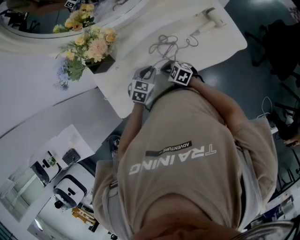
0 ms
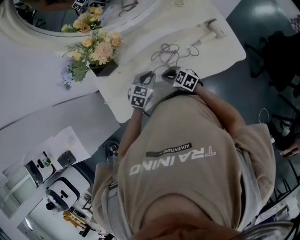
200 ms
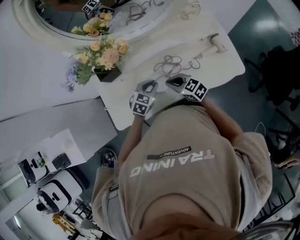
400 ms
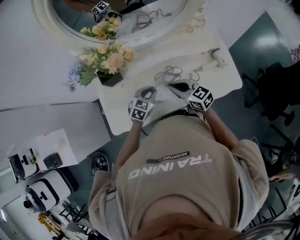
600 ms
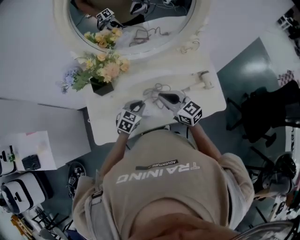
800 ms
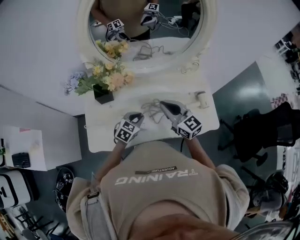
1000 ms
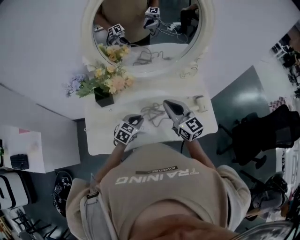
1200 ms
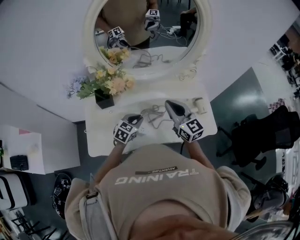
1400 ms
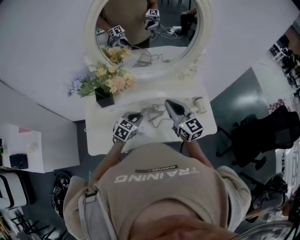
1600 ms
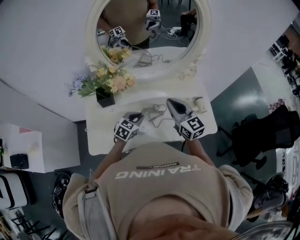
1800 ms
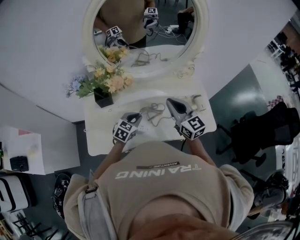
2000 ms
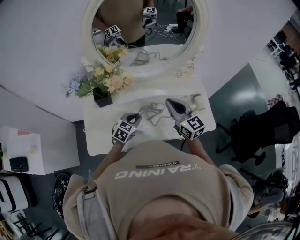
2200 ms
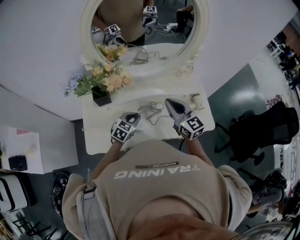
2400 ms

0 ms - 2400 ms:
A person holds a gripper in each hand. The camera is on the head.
0 ms - 1200 ms: The right gripper goes about 30 cm upward, and angles its fingers upward, by approximately 40 degrees; the left gripper heads upward, covering some 10 cm.
1200 ms - 2400 ms: The grippers make only small movements.

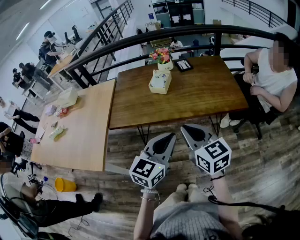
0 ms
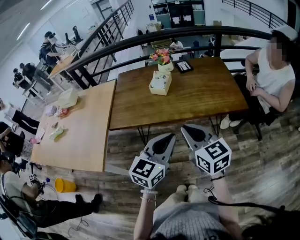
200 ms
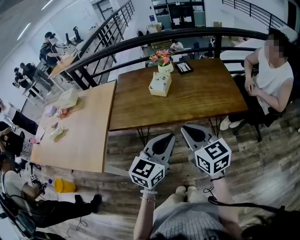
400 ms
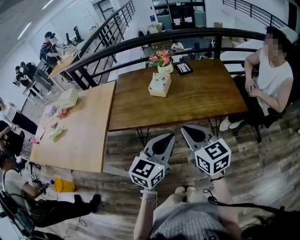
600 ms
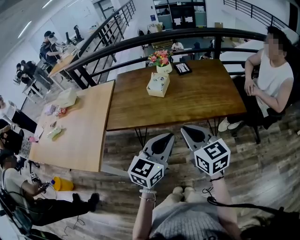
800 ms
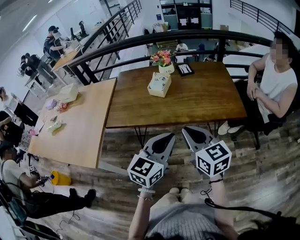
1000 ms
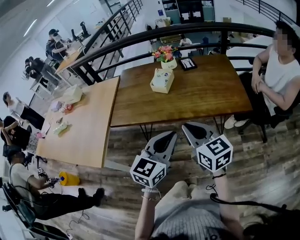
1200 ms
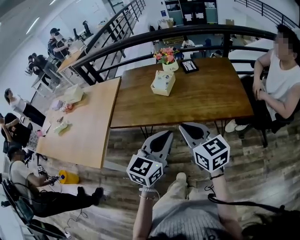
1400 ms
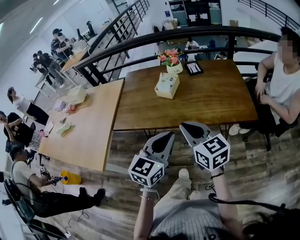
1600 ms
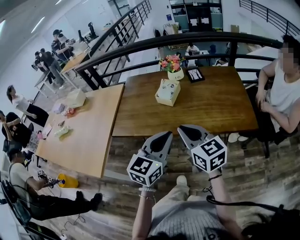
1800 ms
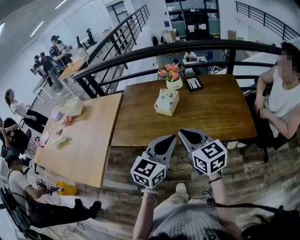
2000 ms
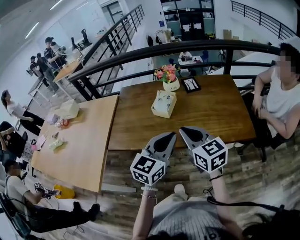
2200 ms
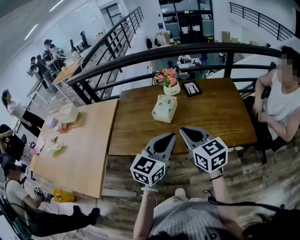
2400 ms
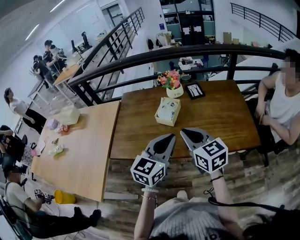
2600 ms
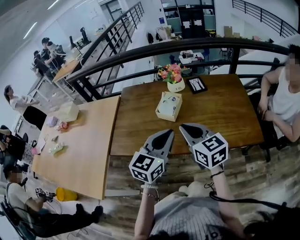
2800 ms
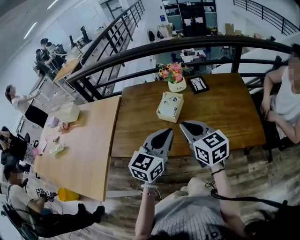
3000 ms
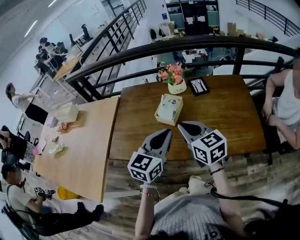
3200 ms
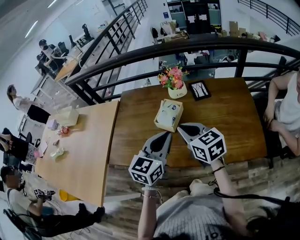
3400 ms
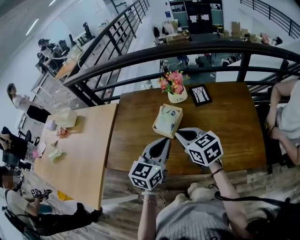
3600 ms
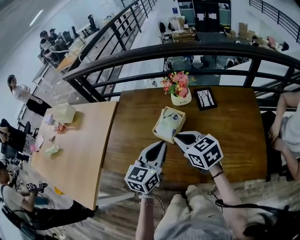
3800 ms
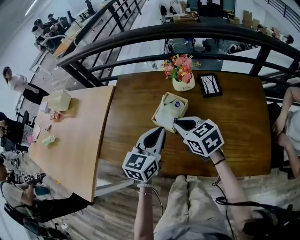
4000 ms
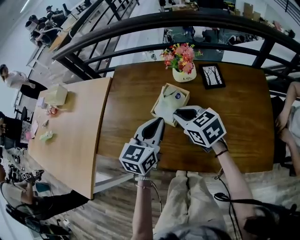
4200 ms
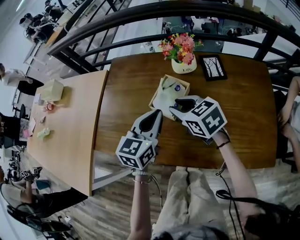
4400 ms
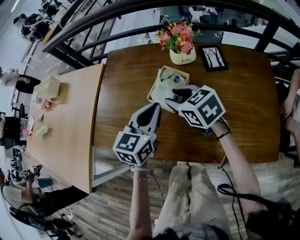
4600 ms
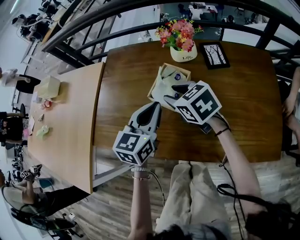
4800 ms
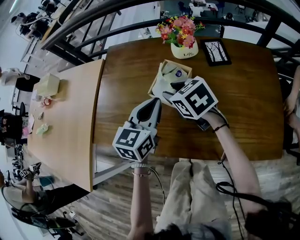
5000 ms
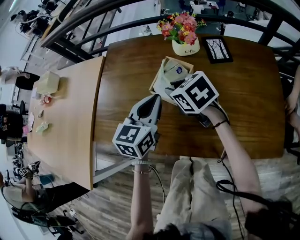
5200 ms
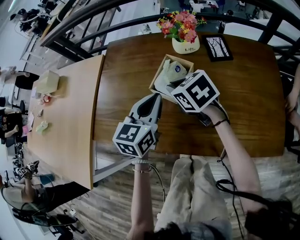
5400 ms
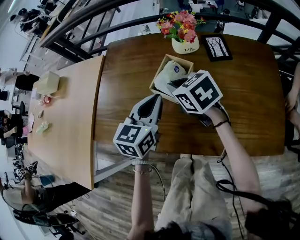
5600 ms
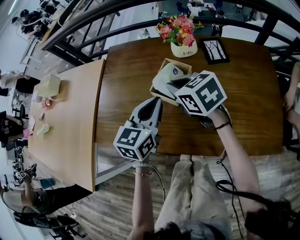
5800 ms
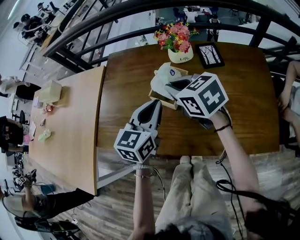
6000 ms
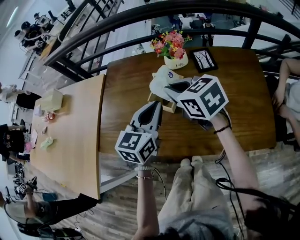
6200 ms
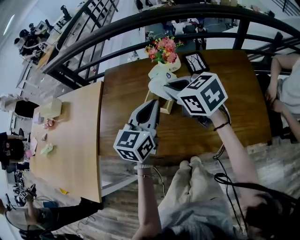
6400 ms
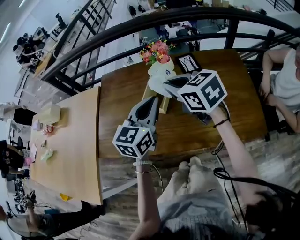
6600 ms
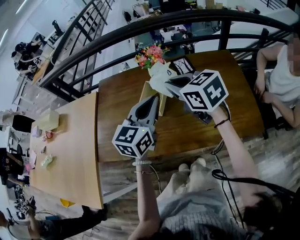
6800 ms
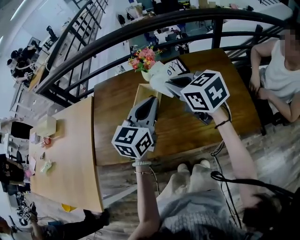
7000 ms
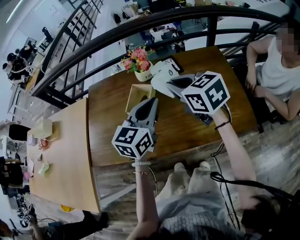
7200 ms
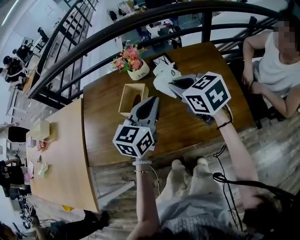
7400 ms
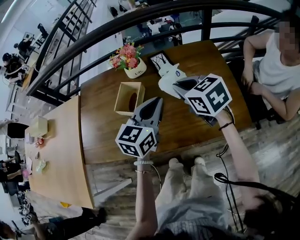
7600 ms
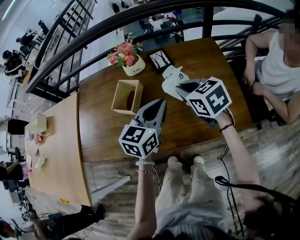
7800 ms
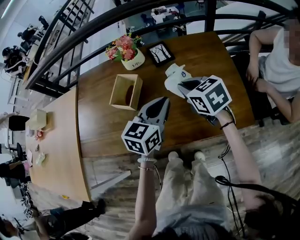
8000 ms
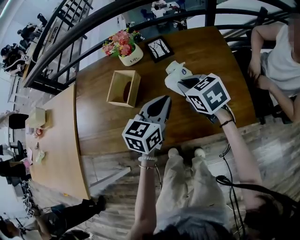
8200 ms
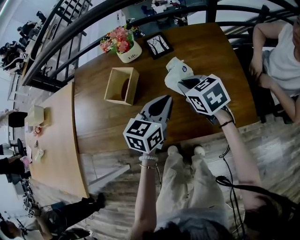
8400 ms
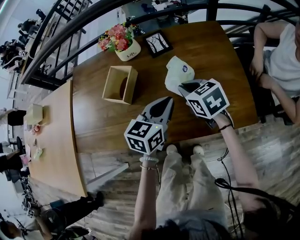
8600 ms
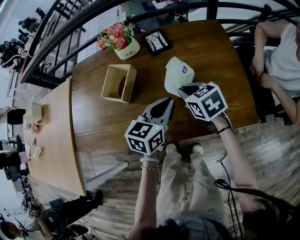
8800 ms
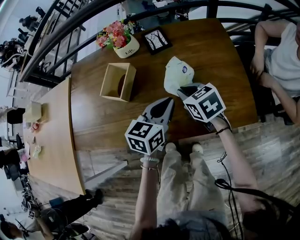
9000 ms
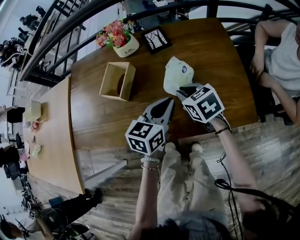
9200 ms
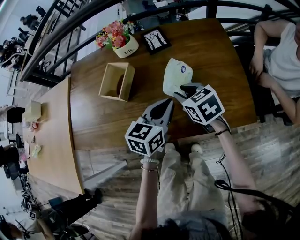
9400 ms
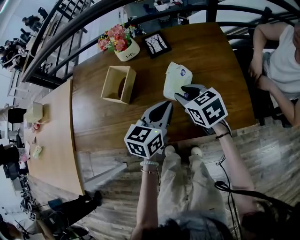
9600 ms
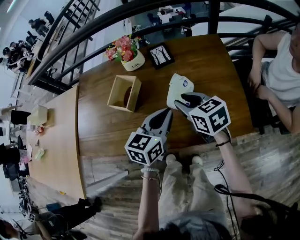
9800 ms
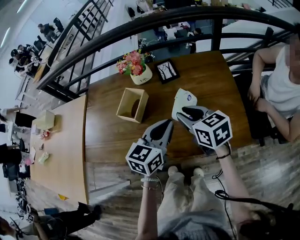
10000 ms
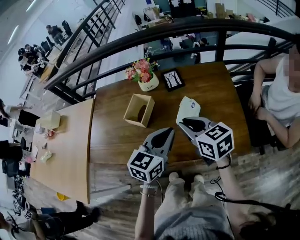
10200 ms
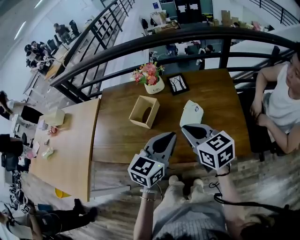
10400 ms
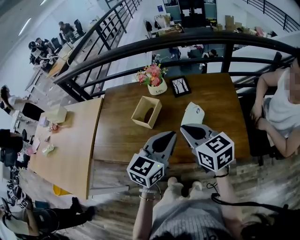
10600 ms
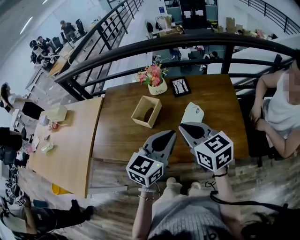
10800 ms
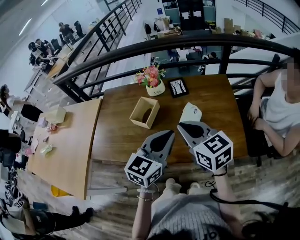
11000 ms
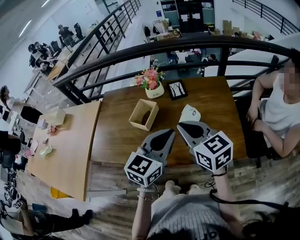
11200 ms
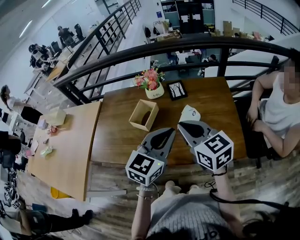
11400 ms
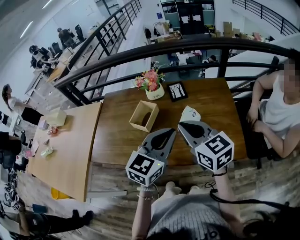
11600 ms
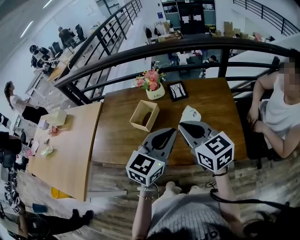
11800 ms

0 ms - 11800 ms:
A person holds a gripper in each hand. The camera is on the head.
0 ms - 1400 ms: The grippers make only small movements.
1400 ms - 3000 ms: The grippers both shift forward by some 20 cm.
3000 ms - 4400 ms: The grippers both shift forward and downward by roughly 20 cm. The right gripper swivels about 30 degrees, and opens up.
4400 ms - 6000 ms: The right gripper moves some 5 cm, and closes up.
6000 ms - 7400 ms: The left gripper moves to the right and upward, some 15 cm. Meanwhile the right gripper goes about 15 cm to the right.
7400 ms - 8800 ms: The left gripper is displaced downward and to the right by approximately 15 cm. Meanwhile the right gripper moves downward, roughly 15 cm.
8800 ms - 10400 ms: The two grippers go roughly 15 cm upward and backward. The right gripper rotates roughly 20 degrees, and opens, then closes once more.
10400 ms - 11800 ms: The left gripper ends up roughly 5 cm from where it was. The right gripper heads upward, covering about 5 cm.

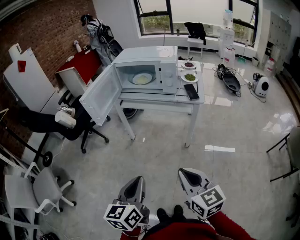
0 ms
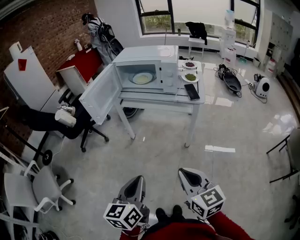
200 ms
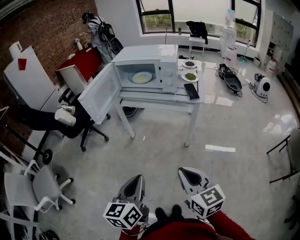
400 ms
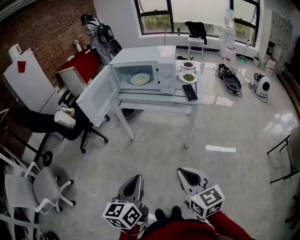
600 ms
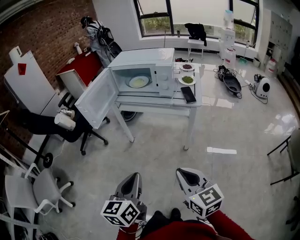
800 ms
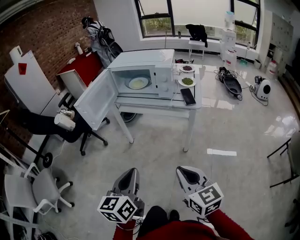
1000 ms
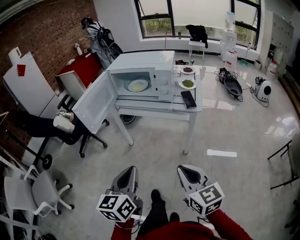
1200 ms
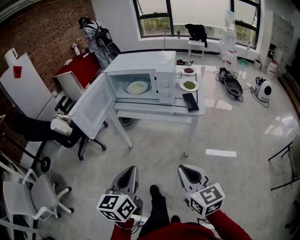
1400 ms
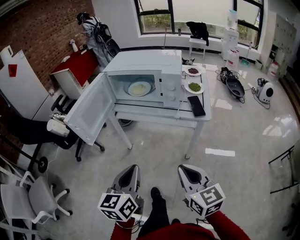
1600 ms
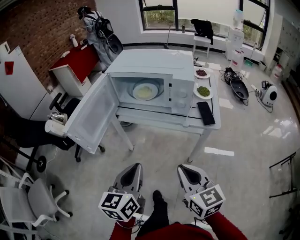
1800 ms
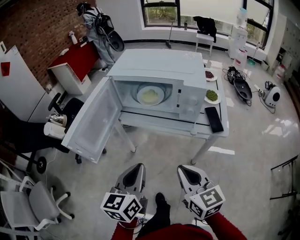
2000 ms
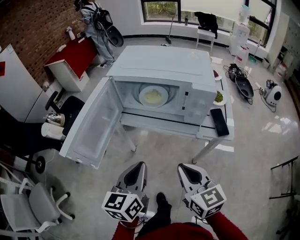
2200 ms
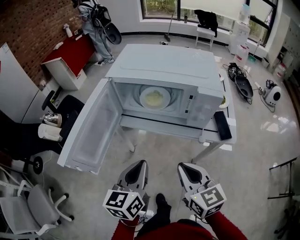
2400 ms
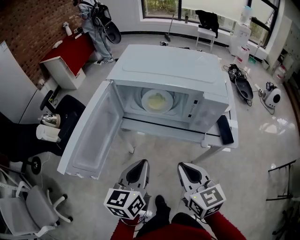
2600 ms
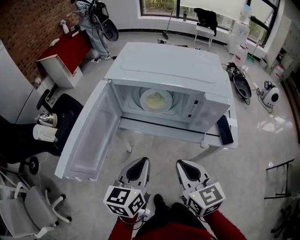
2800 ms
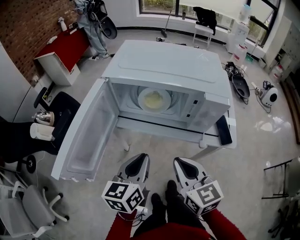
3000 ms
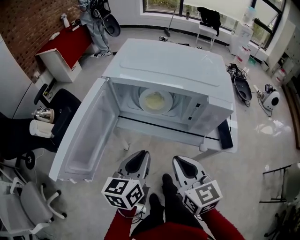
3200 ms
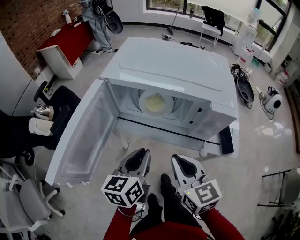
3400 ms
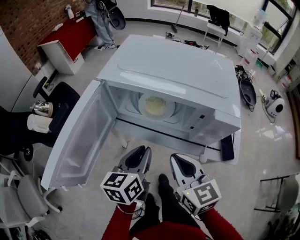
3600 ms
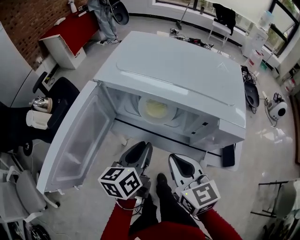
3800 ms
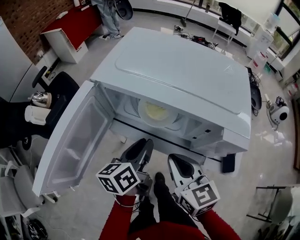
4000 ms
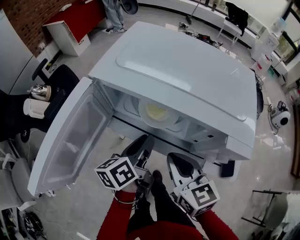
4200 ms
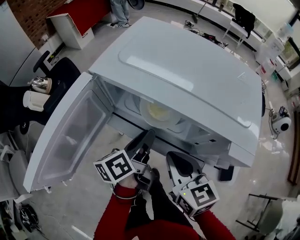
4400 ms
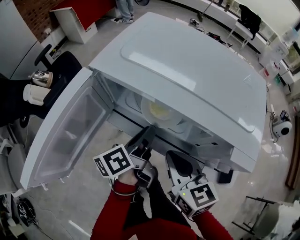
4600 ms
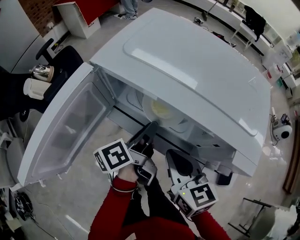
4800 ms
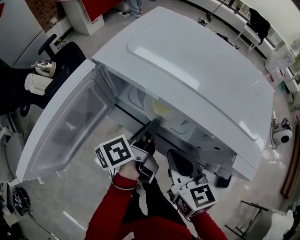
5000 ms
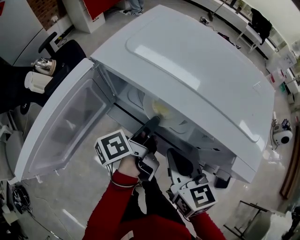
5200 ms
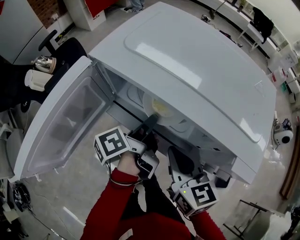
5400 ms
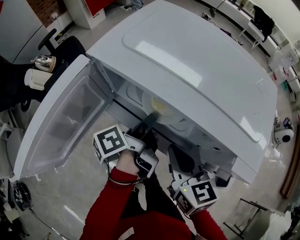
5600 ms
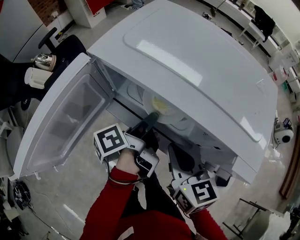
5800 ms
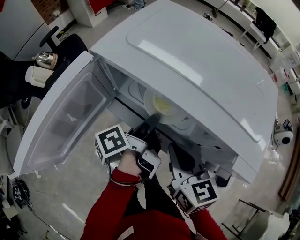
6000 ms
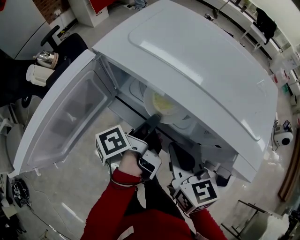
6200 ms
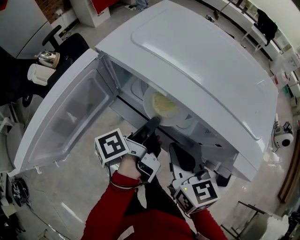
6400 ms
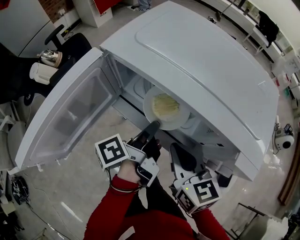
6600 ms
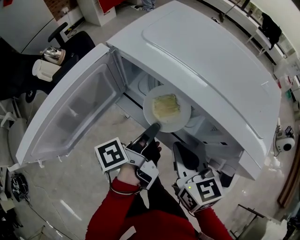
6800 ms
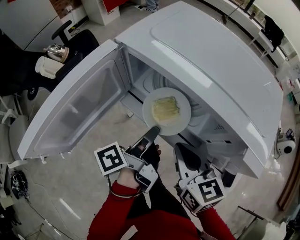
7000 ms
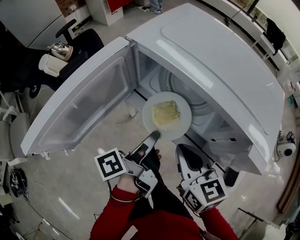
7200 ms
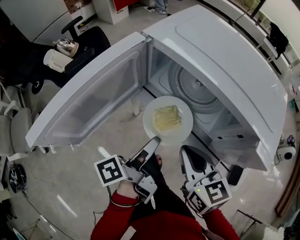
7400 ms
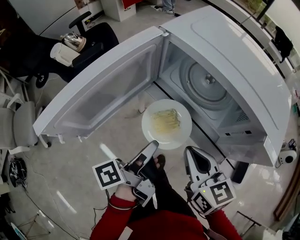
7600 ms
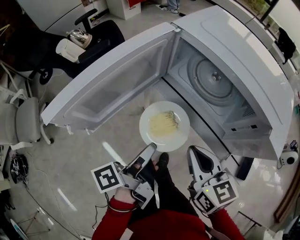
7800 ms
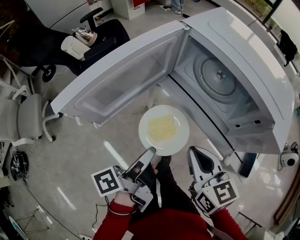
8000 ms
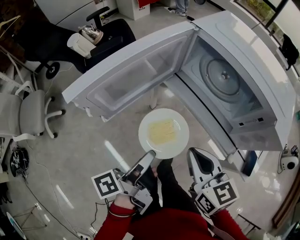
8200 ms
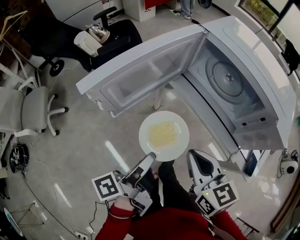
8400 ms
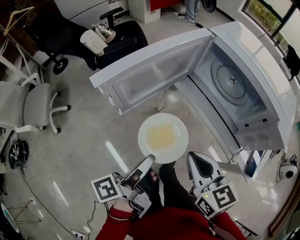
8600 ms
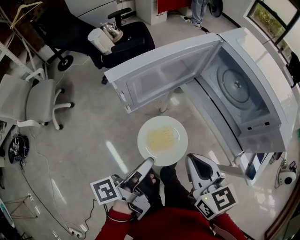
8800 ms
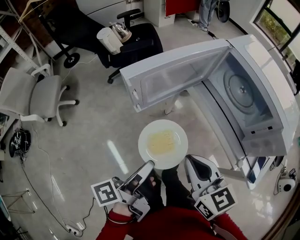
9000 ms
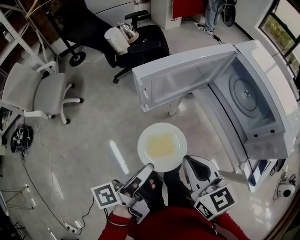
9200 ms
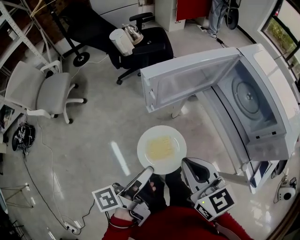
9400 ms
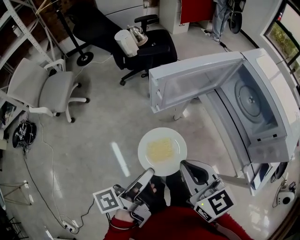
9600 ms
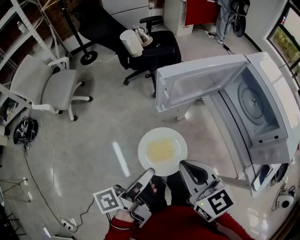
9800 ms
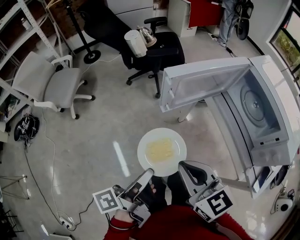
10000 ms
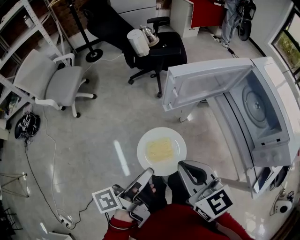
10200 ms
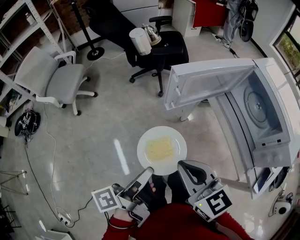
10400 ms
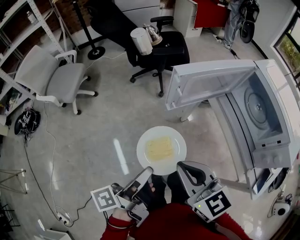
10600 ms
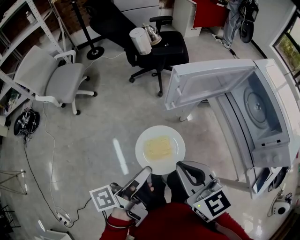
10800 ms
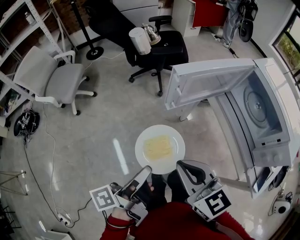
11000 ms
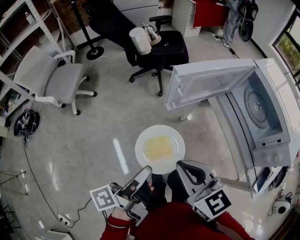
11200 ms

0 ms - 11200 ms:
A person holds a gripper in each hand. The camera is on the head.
0 ms - 1600 ms: The grippers both shift forward by some 15 cm.
1600 ms - 3200 ms: The grippers both shift forward by some 25 cm.
3200 ms - 4800 ms: Both grippers move forward, approximately 15 cm. The left gripper rolls counterclockwise, seen from behind, by approximately 50 degrees.
4800 ms - 6400 ms: The left gripper turns by about 20 degrees, and closes up.
6400 ms - 8000 ms: The right gripper shifts some 10 cm backward and to the left, while the left gripper travels backward and to the left by roughly 20 cm.
8000 ms - 9600 ms: Both grippers move to the left and backward, about 20 cm. The right gripper swivels roughly 30 degrees.
9600 ms - 11200 ms: The right gripper travels to the left by about 5 cm.
